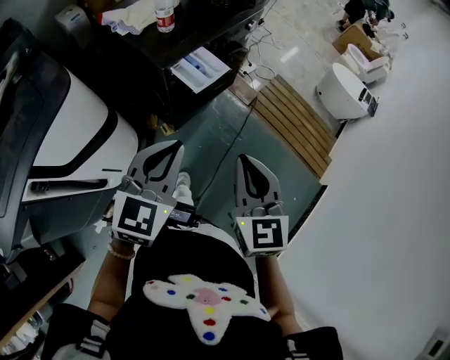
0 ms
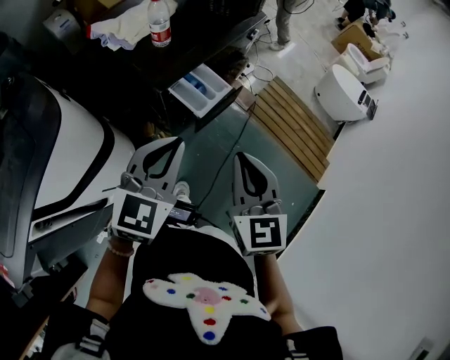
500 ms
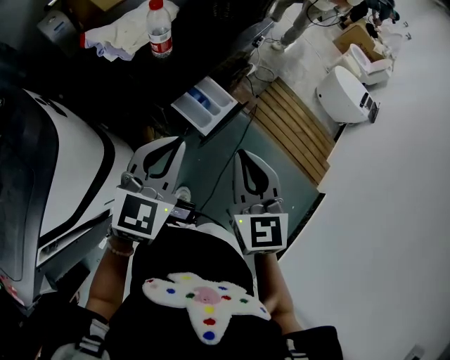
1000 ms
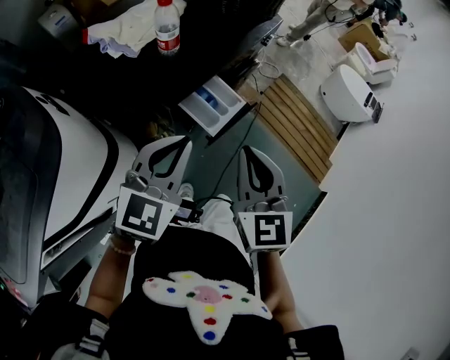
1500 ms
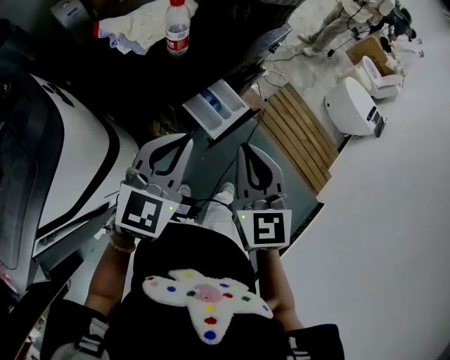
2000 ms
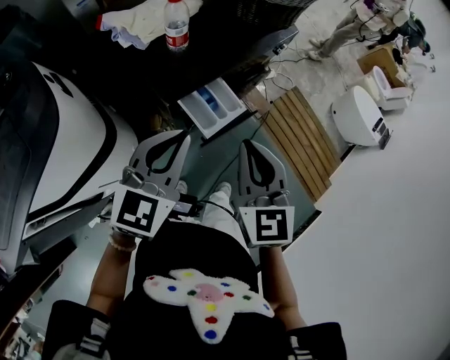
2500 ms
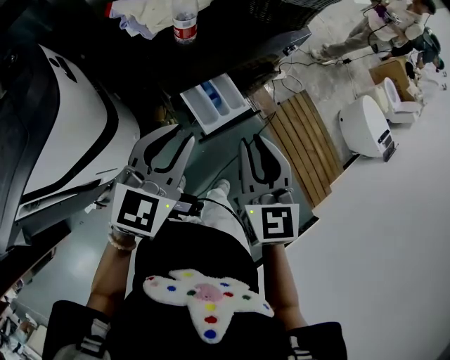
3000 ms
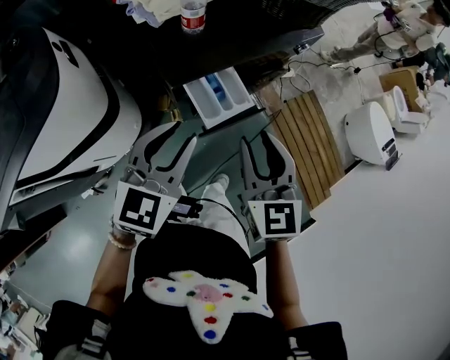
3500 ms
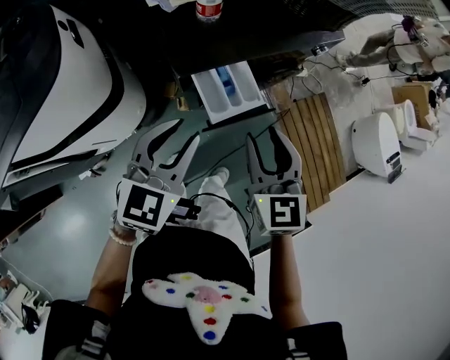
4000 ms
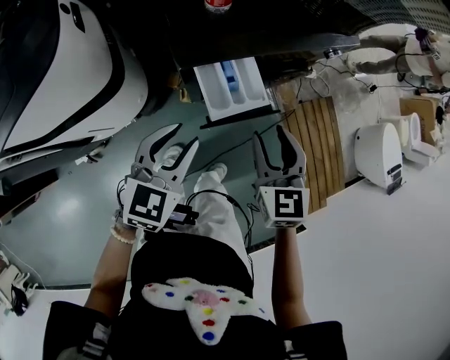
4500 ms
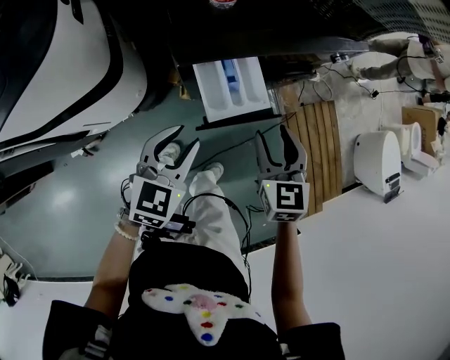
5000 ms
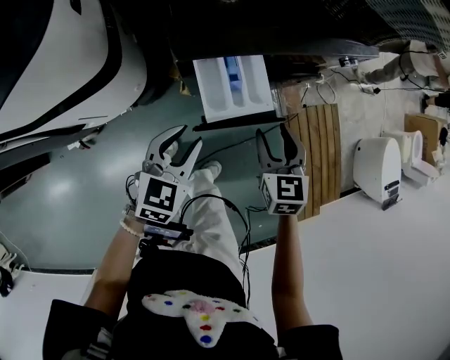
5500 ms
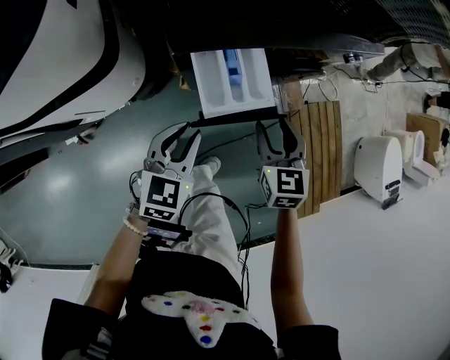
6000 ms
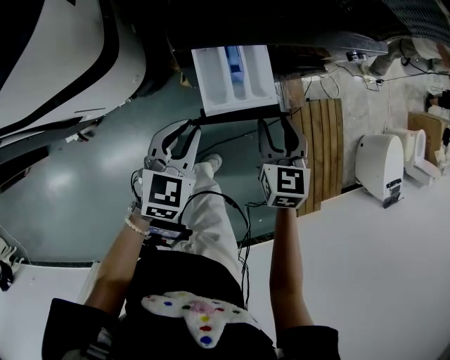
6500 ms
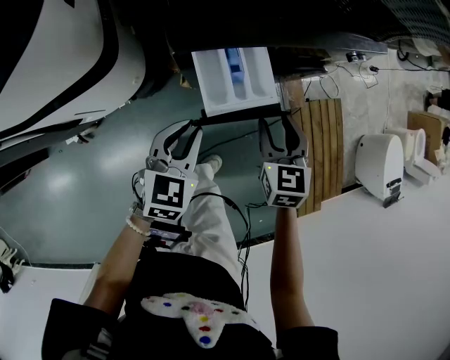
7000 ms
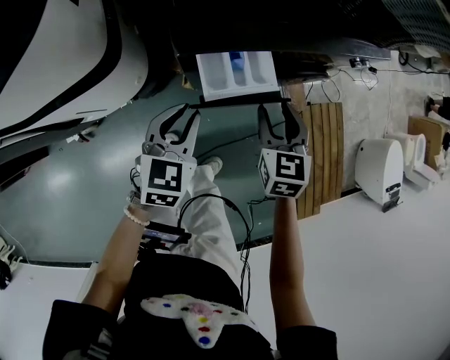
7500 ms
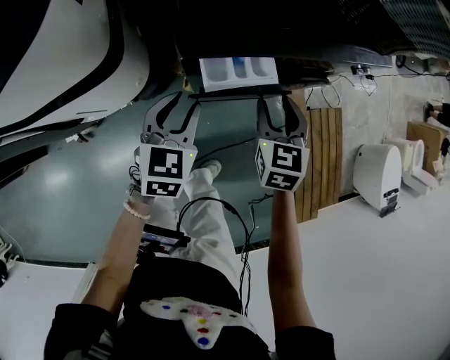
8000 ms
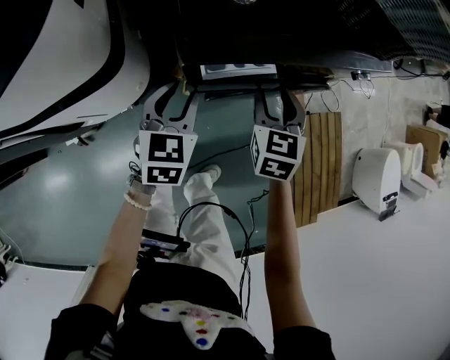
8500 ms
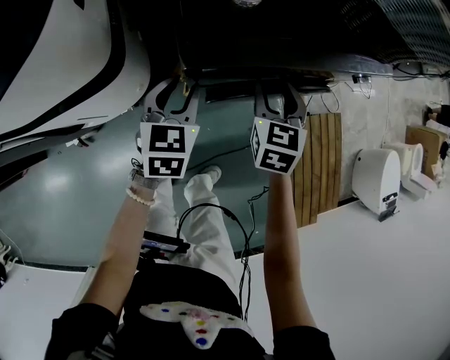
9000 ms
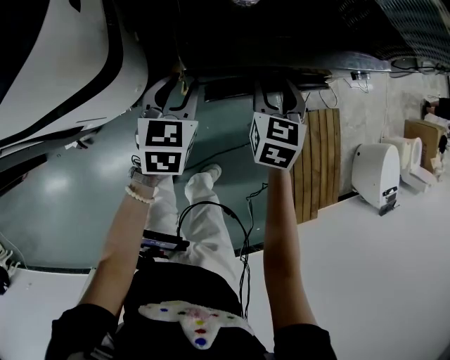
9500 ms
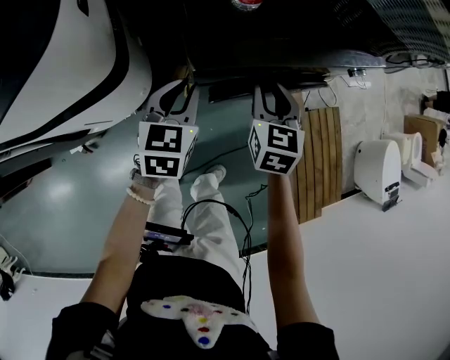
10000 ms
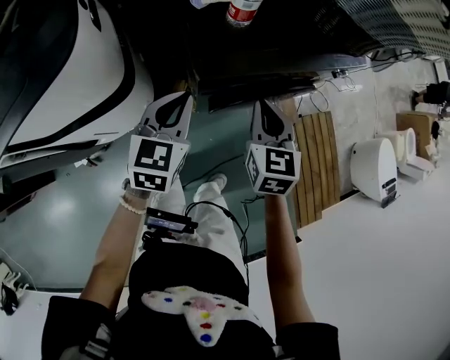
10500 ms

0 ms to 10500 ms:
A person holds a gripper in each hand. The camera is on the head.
0 ms to 2000 ms: The left gripper is displaced forward by roughly 20 cm. Meanwhile the right gripper heads forward and to the left, covering approximately 20 cm.
2000 ms to 4000 ms: The left gripper heads downward, covering some 5 cm, changes its angle by some 20 degrees, and opens. The right gripper travels downward and to the right by about 10 cm, turns by about 20 degrees, and opens its fingers.
4000 ms to 6500 ms: Both grippers move downward, about 15 cm.
6500 ms to 8500 ms: The left gripper is displaced forward and to the left by roughly 10 cm. Meanwhile the right gripper is displaced forward by about 10 cm.
8500 ms to 10500 ms: Both grippers travel together upward, about 10 cm. The left gripper closes. Meanwhile the right gripper closes up.

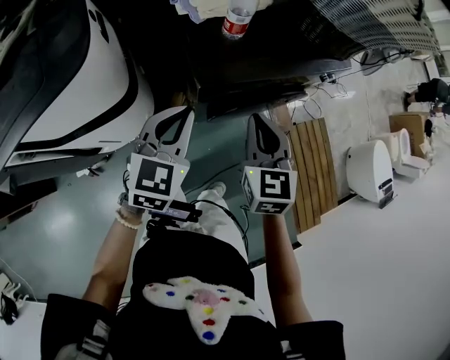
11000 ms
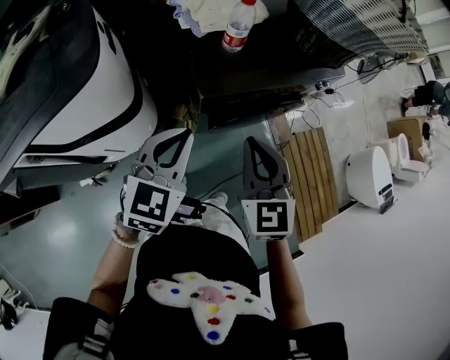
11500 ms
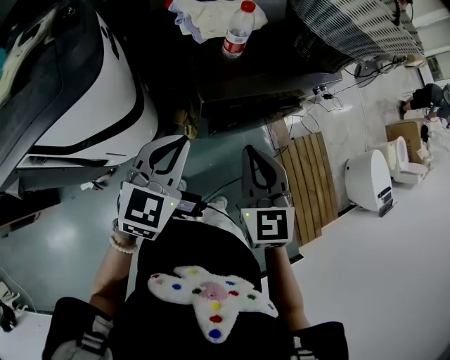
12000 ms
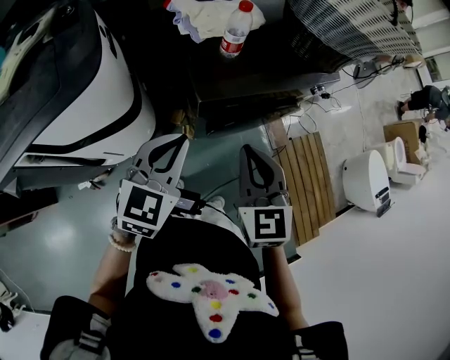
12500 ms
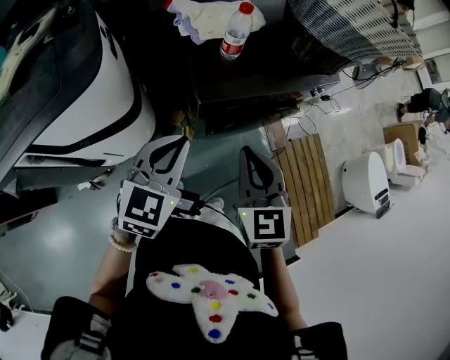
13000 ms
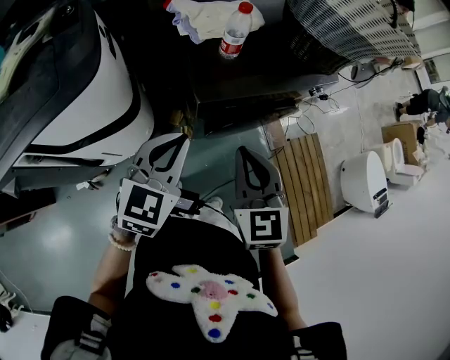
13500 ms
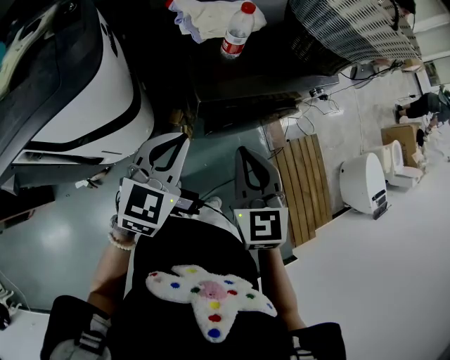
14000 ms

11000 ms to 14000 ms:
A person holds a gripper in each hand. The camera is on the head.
11000 ms to 12500 ms: The left gripper changes place by approximately 5 cm; the right gripper goes approximately 10 cm upward and backward.
12500 ms to 14000 ms: Both grippers stay about where they are.

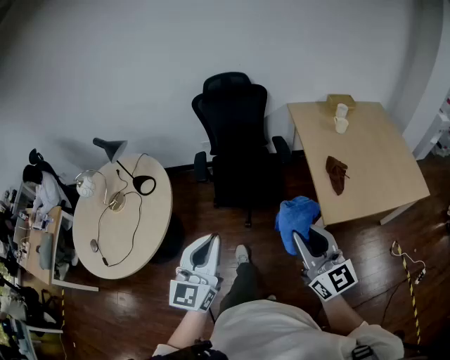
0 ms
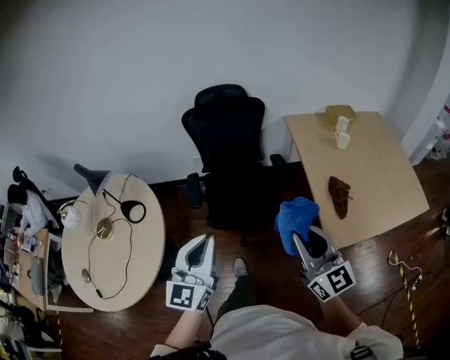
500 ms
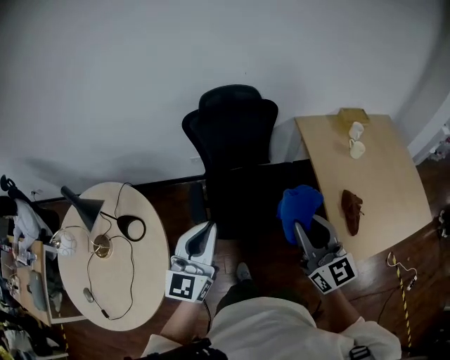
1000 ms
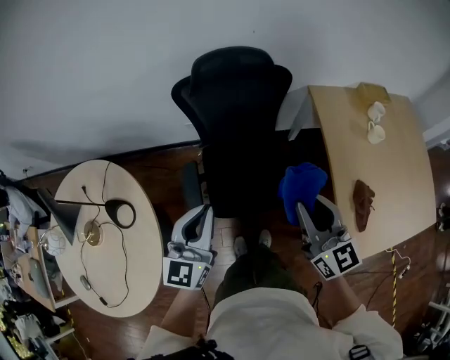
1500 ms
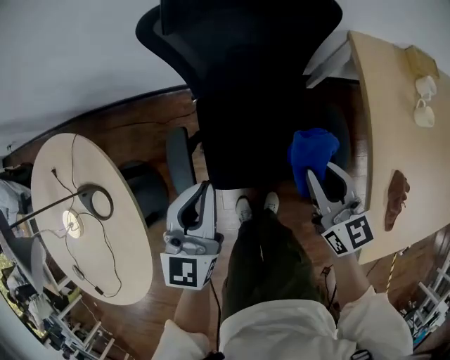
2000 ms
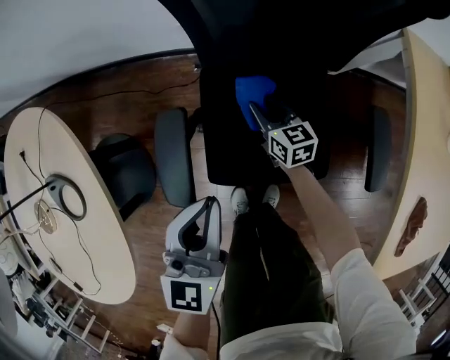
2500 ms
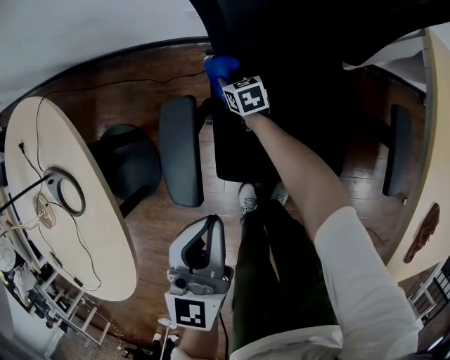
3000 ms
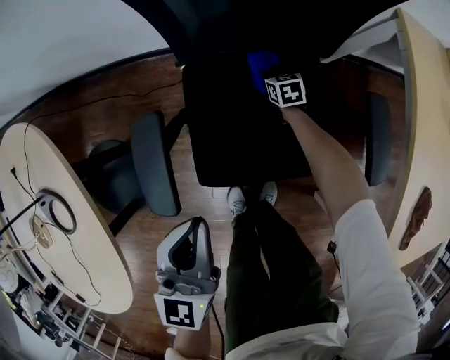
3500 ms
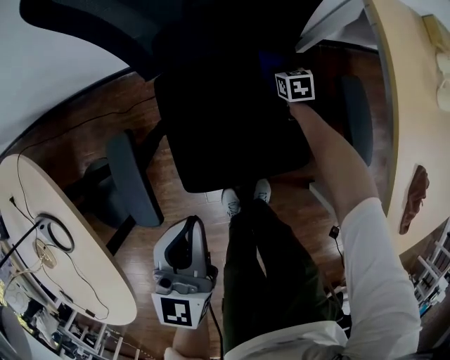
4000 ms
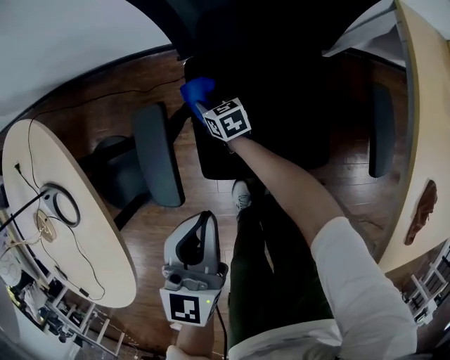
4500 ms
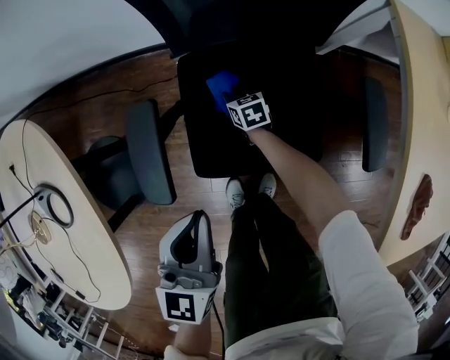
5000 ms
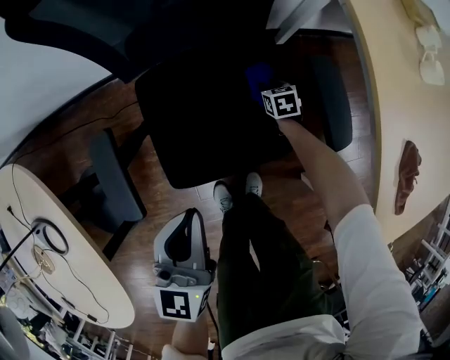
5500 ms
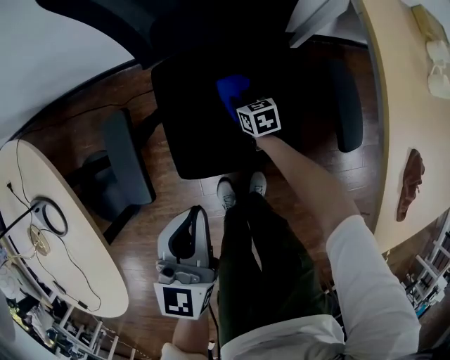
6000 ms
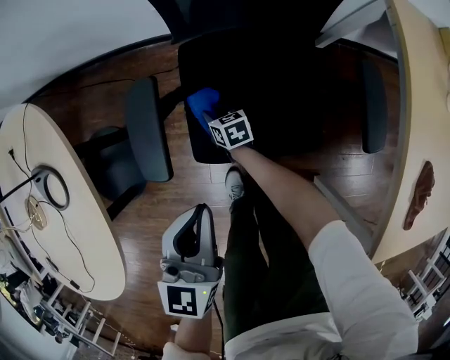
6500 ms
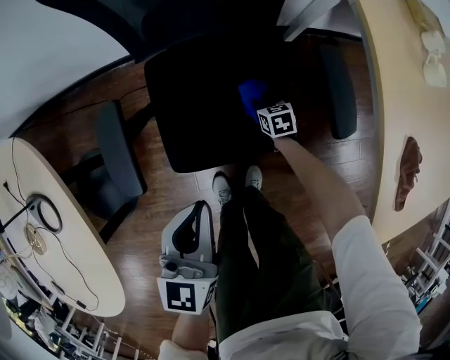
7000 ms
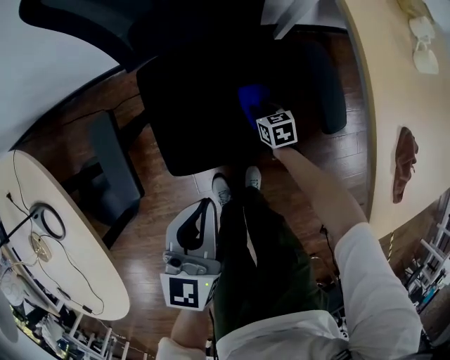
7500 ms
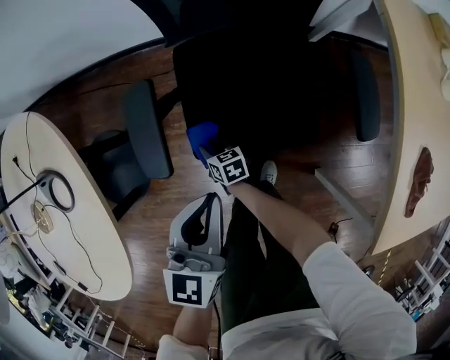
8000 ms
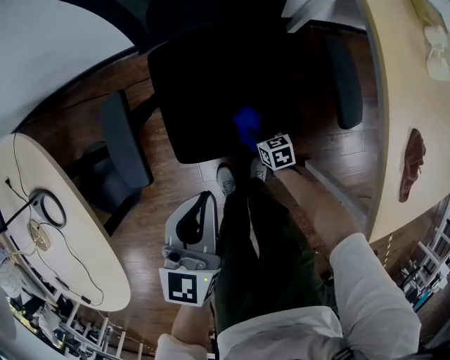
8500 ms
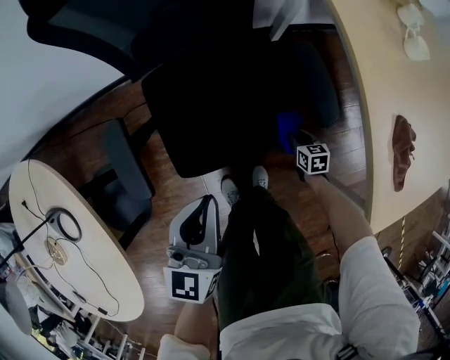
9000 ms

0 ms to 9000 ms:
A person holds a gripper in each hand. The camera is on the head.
0 ms to 2000 ms: The two grippers travel together, forward, roughly 90 cm. The right gripper rotates approximately 40 degrees. The left gripper changes its angle by roughly 20 degrees.
2000 ms to 4500 ms: The left gripper is displaced downward by about 20 cm; the right gripper goes roughly 60 cm downward and to the left, and swivels roughly 40 degrees.
4500 ms to 7000 ms: The right gripper moves left and right over approximately 35 cm, changing direction 2 times, and turns by roughly 20 degrees; the left gripper swings left and right, roughly 10 cm each way, with 2 reversals.
7000 ms to 9000 ms: The left gripper moves roughly 5 cm. The right gripper is displaced backward by roughly 15 cm, and travels to the left and back again, about 30 cm each way.

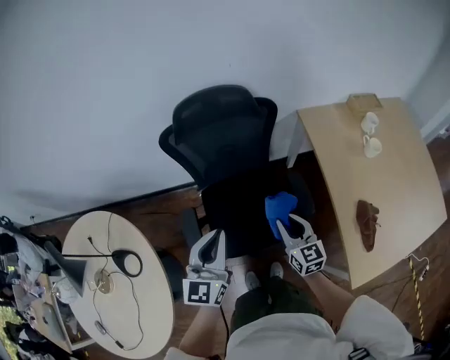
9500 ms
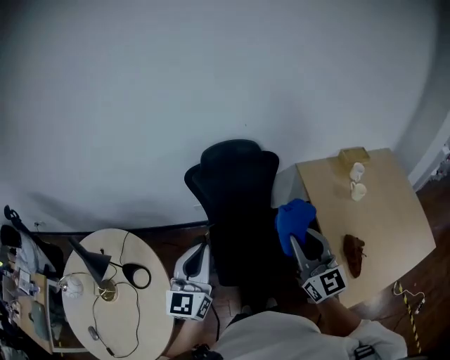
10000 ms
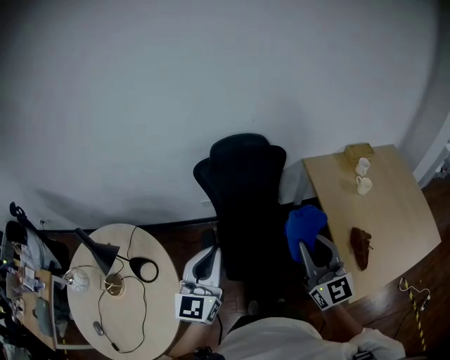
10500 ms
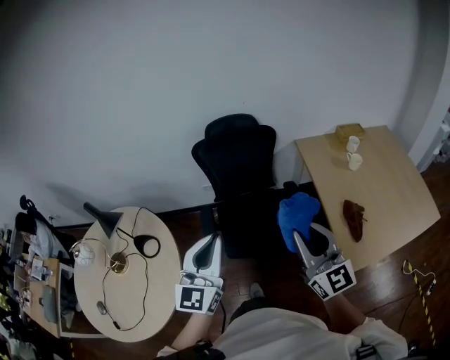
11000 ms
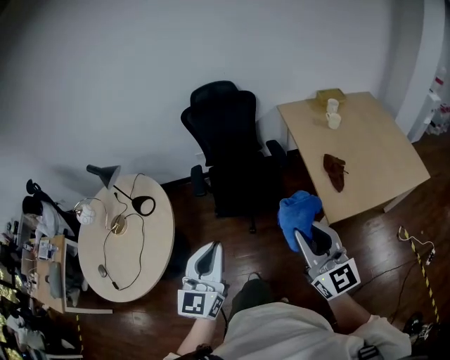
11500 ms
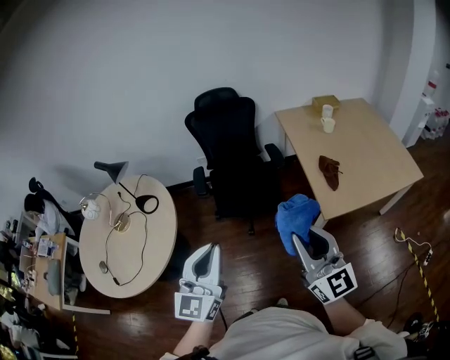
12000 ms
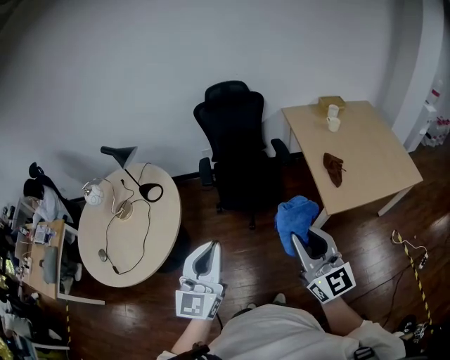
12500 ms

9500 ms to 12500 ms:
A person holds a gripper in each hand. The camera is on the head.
9500 ms to 11000 ms: The two grippers travel together, backward, some 40 cm. The right gripper moves upward, approximately 30 cm, and tilts its fingers some 30 degrees upward.
11000 ms to 12500 ms: The grippers both shift backward by about 40 cm.
